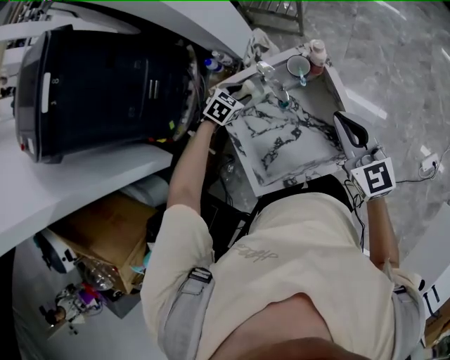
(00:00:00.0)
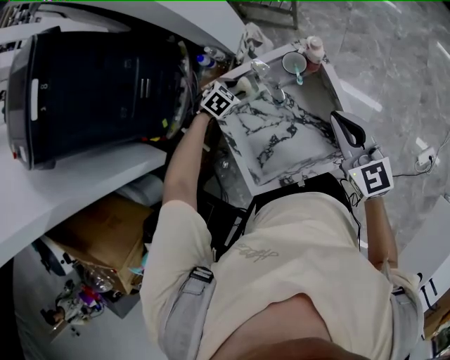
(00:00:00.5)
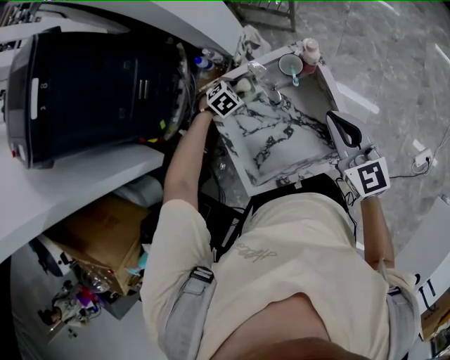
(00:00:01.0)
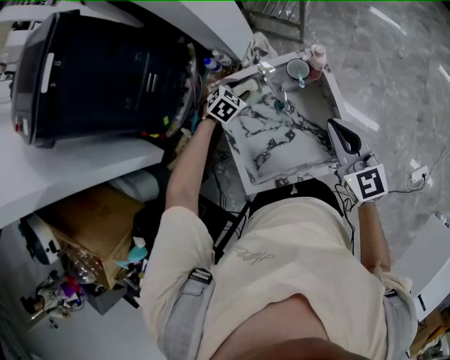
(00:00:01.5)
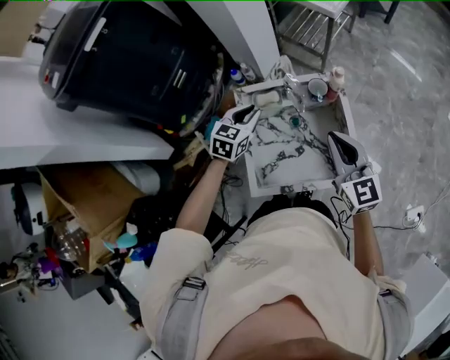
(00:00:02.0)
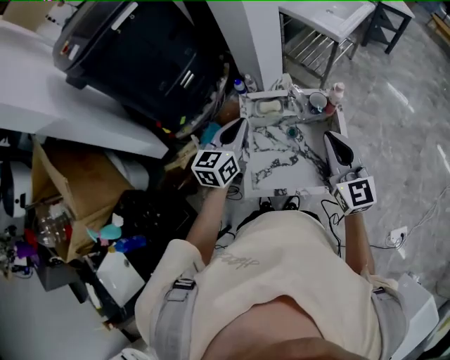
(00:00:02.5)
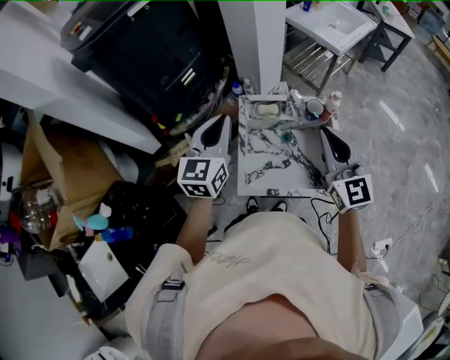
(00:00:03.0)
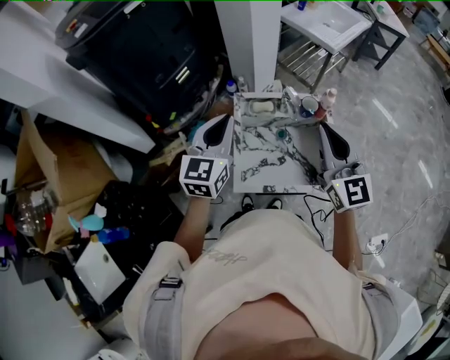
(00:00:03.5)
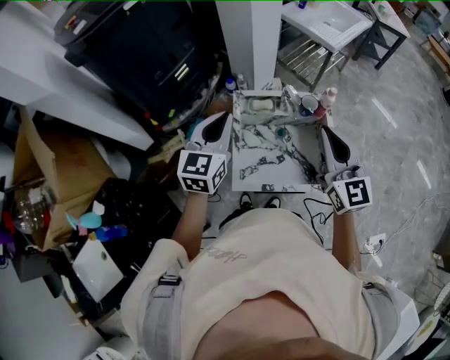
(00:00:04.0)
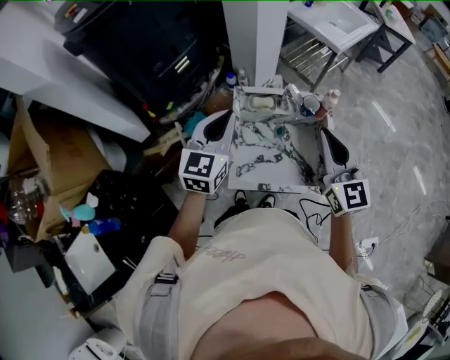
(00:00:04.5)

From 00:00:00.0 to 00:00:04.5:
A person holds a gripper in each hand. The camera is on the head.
From 00:00:00.0 to 00:00:02.0: The left gripper shifts roughly 15 cm upward and backward, rotates some 40 degrees, and closes its fingers; the right gripper moves about 5 cm.
From 00:00:02.0 to 00:00:04.5: The right gripper shifts approximately 10 cm upward, while the left gripper travels upward, backward and to the left by some 20 cm, and swivels roughly 30 degrees.

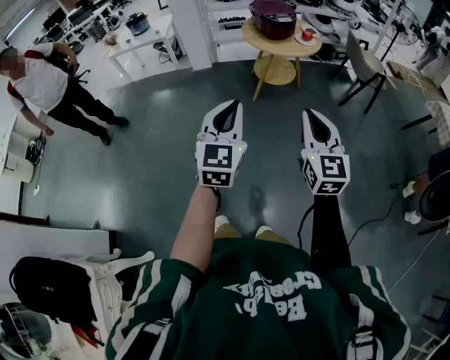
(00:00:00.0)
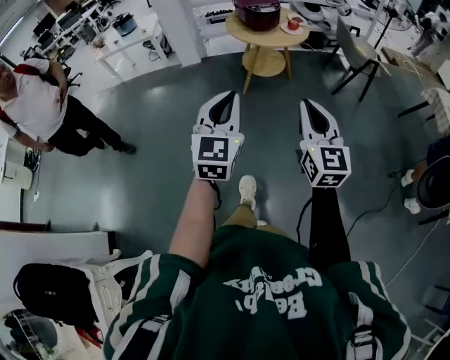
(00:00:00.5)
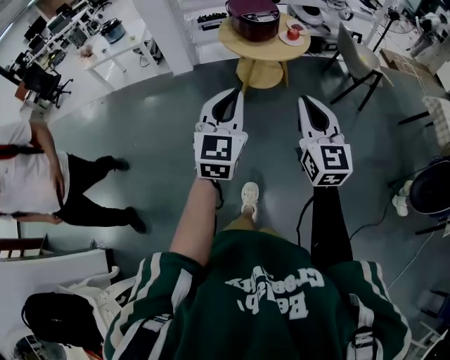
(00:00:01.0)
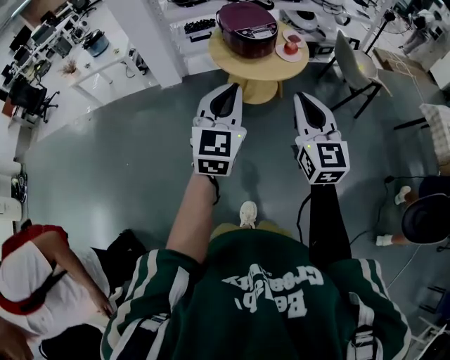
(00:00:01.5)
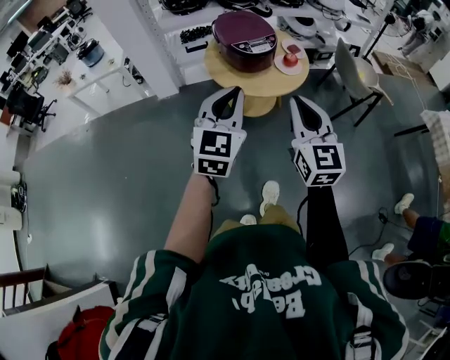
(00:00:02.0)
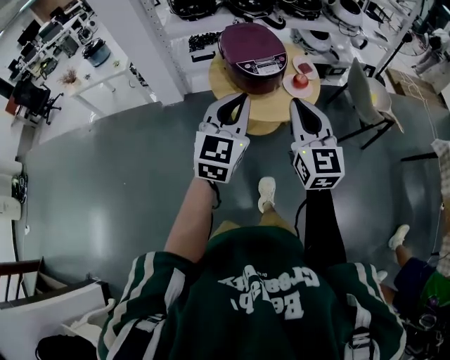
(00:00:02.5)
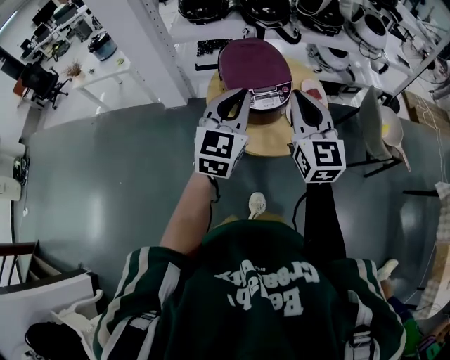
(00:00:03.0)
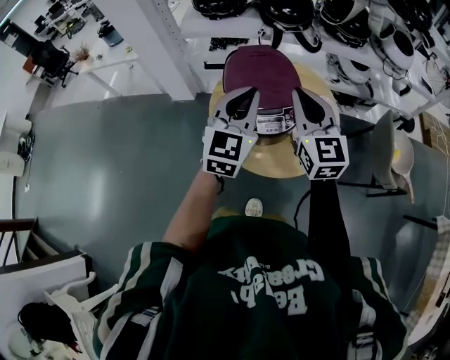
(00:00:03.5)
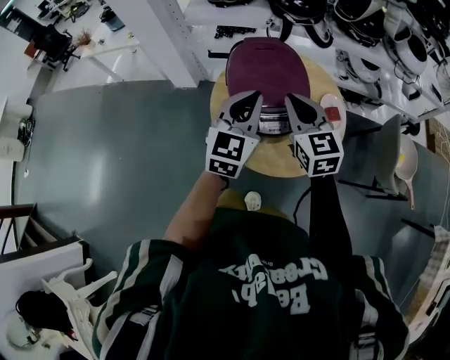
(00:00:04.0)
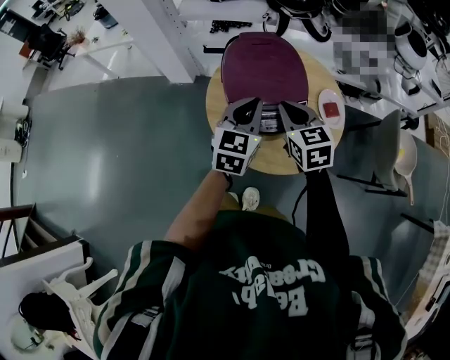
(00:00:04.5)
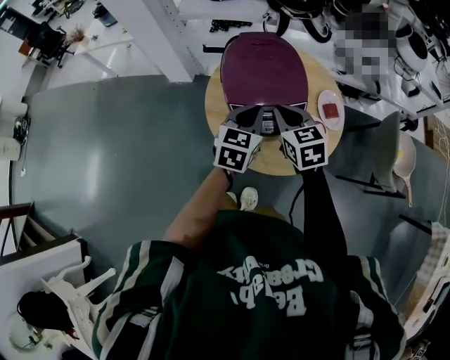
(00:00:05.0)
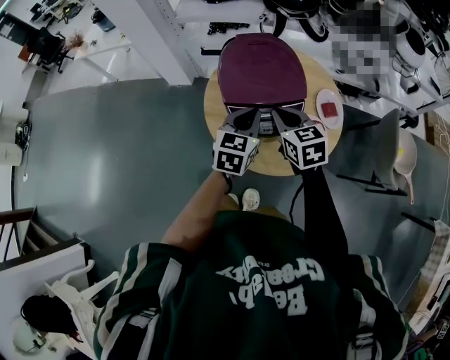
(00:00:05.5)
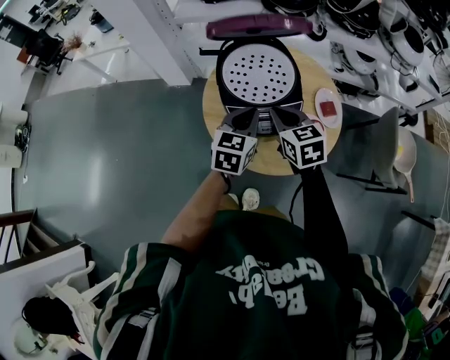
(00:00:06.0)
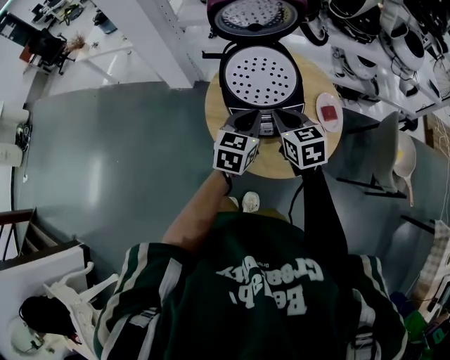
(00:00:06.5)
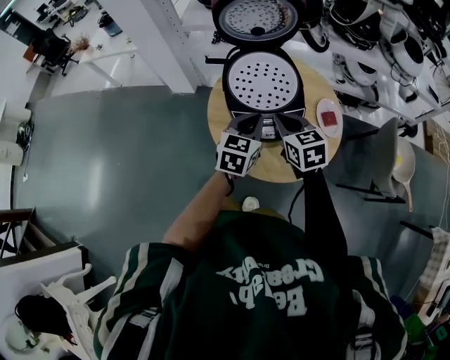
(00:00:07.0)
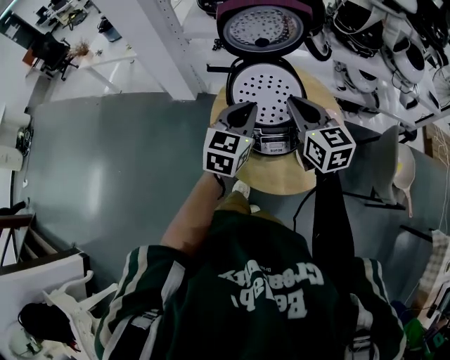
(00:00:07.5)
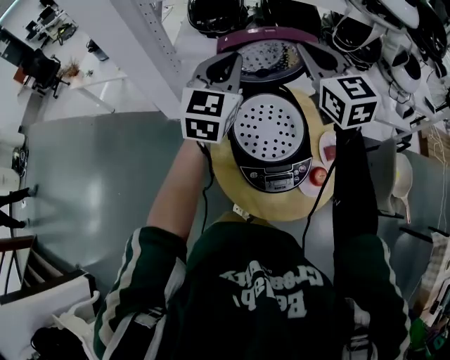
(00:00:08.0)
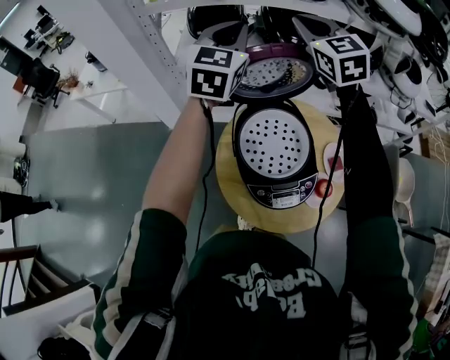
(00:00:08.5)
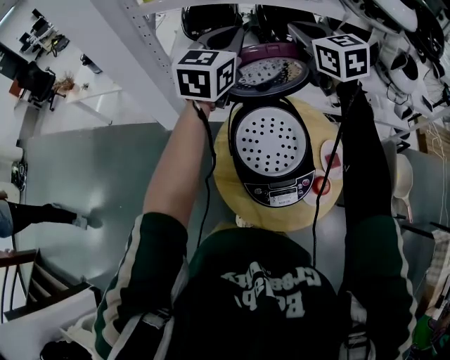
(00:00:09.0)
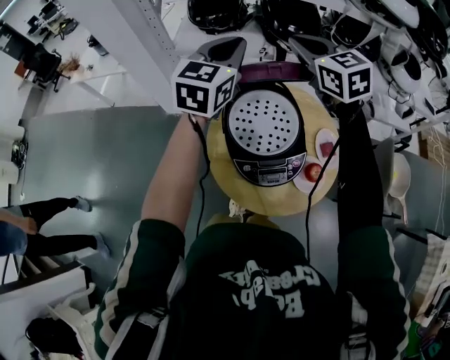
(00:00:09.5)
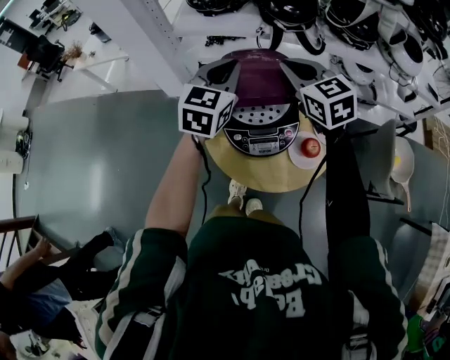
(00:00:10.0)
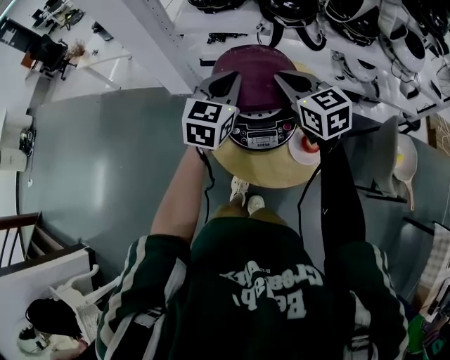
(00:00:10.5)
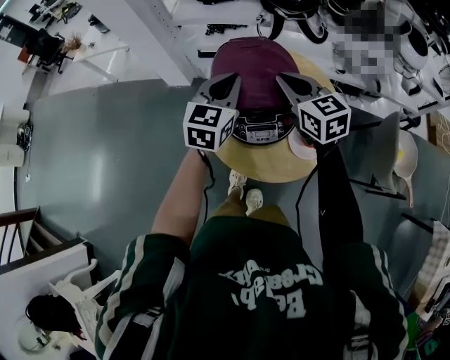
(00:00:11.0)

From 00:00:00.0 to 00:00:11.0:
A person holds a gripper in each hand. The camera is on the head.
From 00:00:00.0 to 00:00:02.0: The two grippers travel together, forward, some 50 cm.
From 00:00:02.0 to 00:00:03.5: The pair of grippers is taken forward, some 40 cm.
From 00:00:03.5 to 00:00:05.5: The two grippers go some 15 cm downward. The right gripper changes its angle by about 30 degrees. Meanwhile the left gripper changes its angle by some 30 degrees.
From 00:00:05.5 to 00:00:07.5: The grippers both shift upward and forward by approximately 10 cm.
From 00:00:07.5 to 00:00:09.0: The two grippers go roughly 35 cm forward and upward.
From 00:00:09.0 to 00:00:11.0: Both grippers travel together backward and downward, roughly 30 cm.

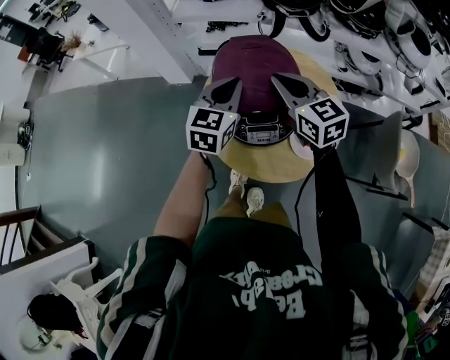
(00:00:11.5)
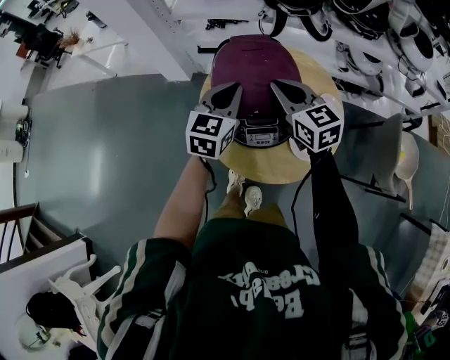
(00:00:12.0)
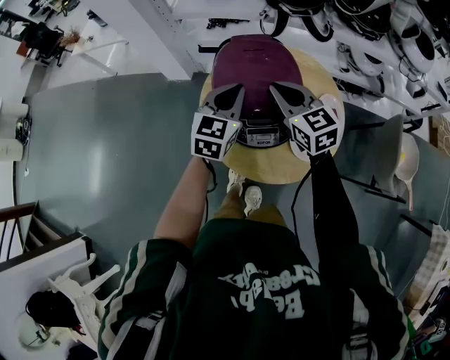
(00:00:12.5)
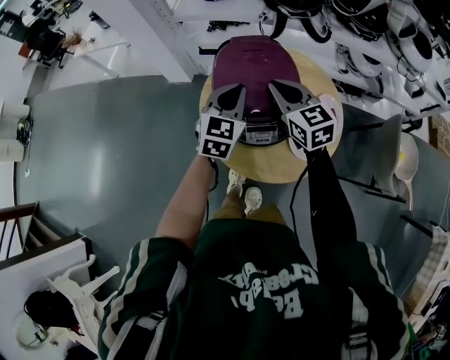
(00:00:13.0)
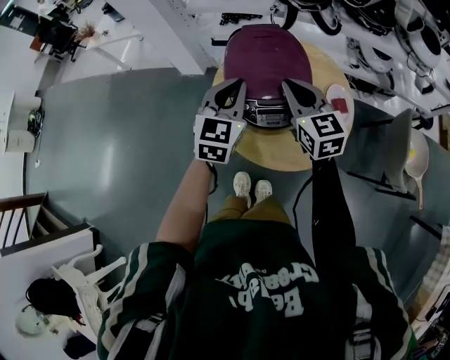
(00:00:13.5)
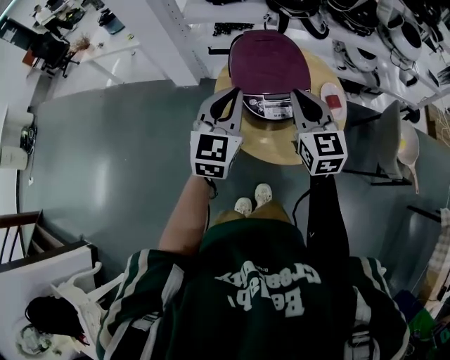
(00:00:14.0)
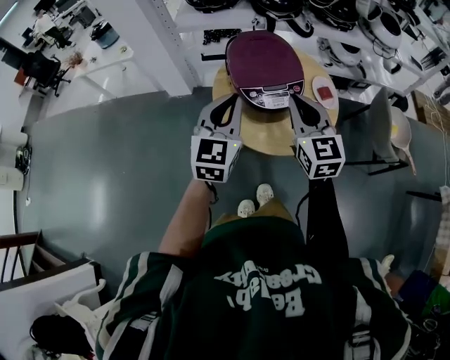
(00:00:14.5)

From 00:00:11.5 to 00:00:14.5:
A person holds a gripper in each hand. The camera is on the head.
From 00:00:11.5 to 00:00:13.0: The grippers make only small movements.
From 00:00:13.0 to 00:00:14.5: The left gripper shifts about 25 cm backward, upward and to the left. The right gripper moves backward and upward, about 20 cm, and changes its angle by some 20 degrees.

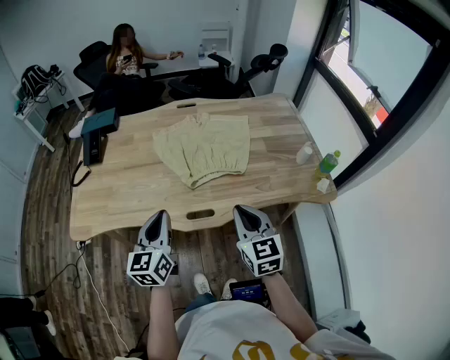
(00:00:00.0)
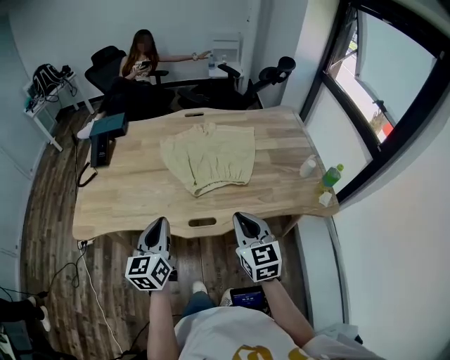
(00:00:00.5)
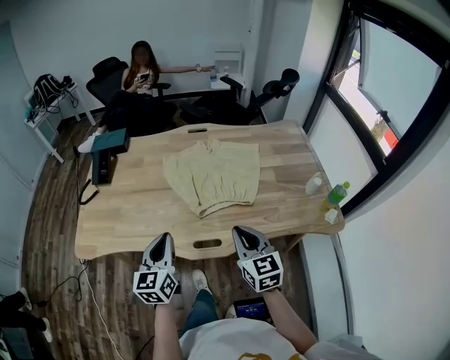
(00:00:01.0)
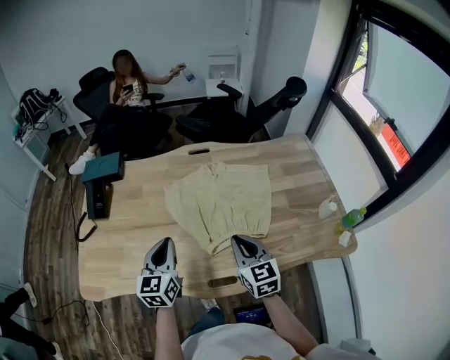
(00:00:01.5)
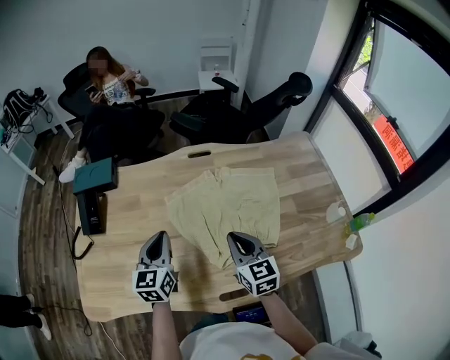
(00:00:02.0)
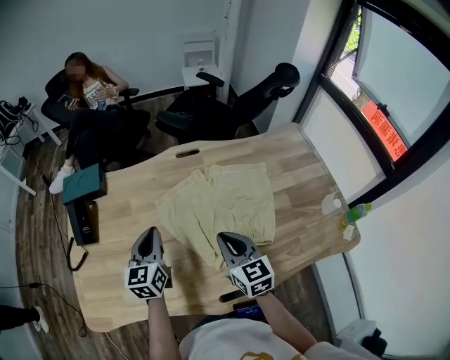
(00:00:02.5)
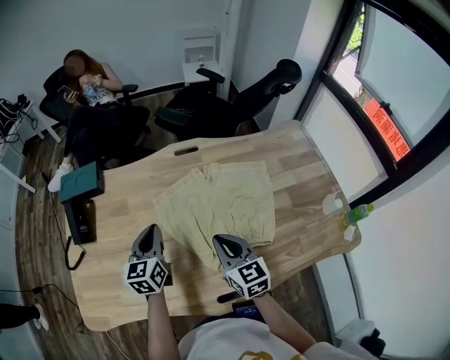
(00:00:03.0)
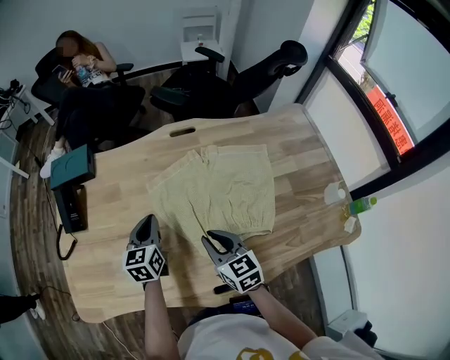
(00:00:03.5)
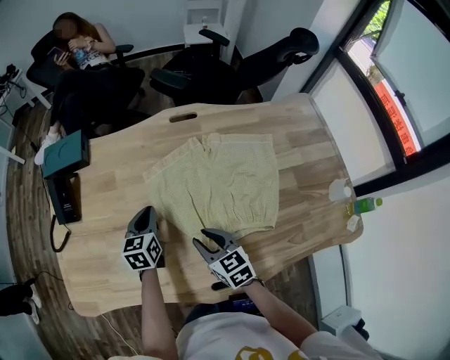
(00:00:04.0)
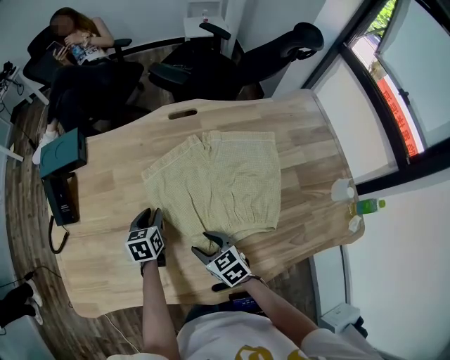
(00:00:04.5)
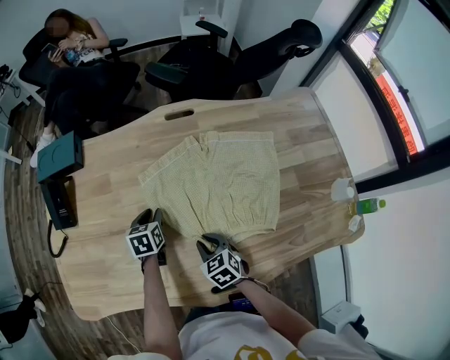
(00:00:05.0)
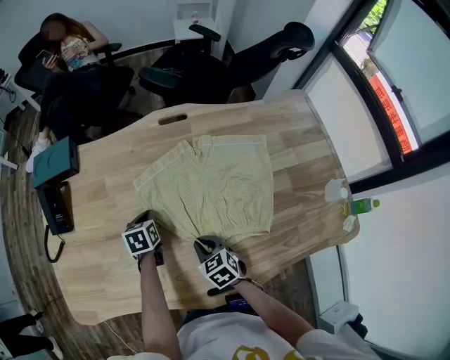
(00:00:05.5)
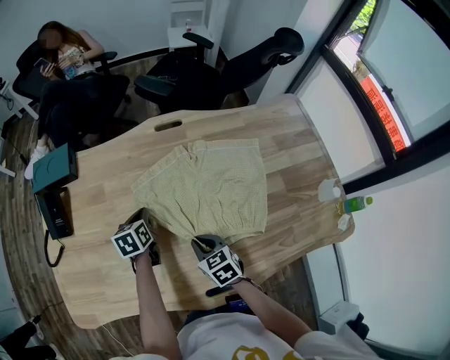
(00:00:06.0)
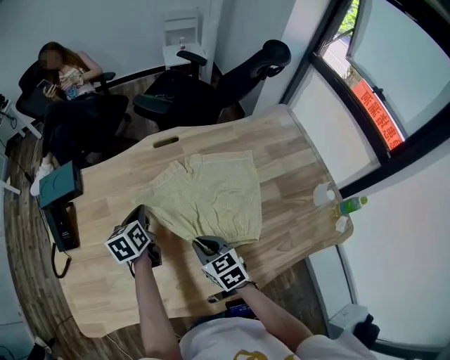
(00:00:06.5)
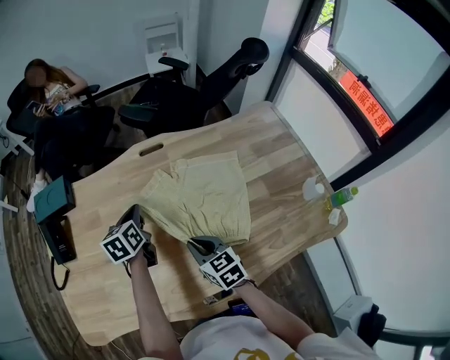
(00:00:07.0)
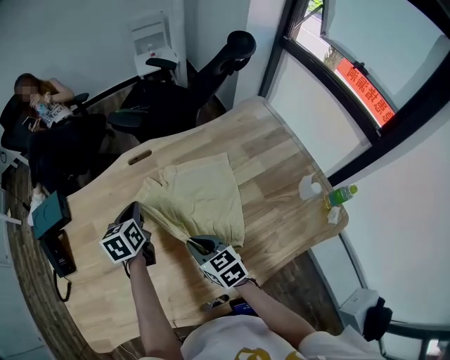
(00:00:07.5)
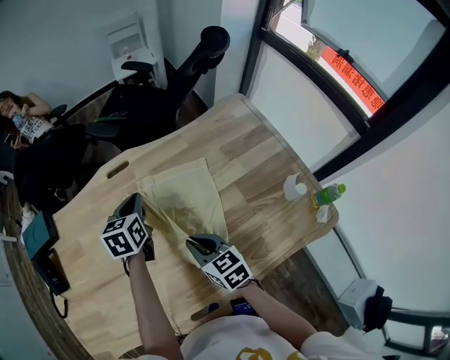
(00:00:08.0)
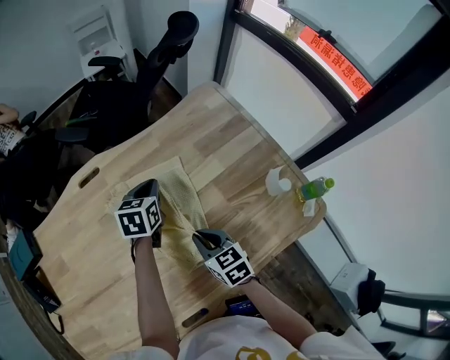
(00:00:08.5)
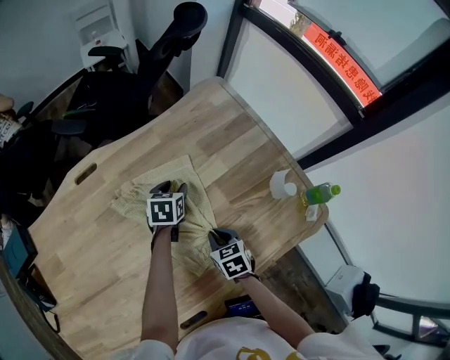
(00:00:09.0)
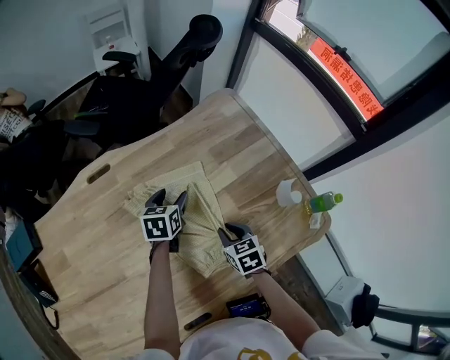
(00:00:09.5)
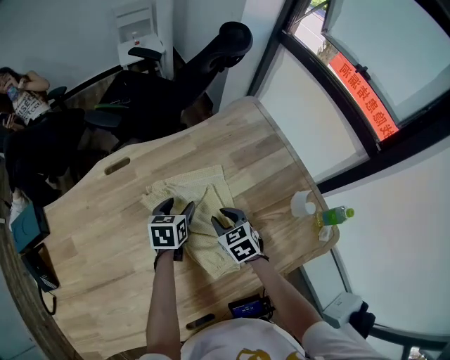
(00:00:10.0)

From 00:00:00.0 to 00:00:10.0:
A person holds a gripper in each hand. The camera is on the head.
From 00:00:00.0 to 00:00:02.0: The two grippers go about 25 cm forward.
From 00:00:02.0 to 00:00:04.0: The right gripper shifts roughly 15 cm downward and to the left, turns by about 20 degrees, and opens its fingers; the left gripper is displaced downward and forward by some 15 cm.
From 00:00:04.0 to 00:00:06.0: The left gripper opens, then closes once more. The right gripper opens, then closes once more.
From 00:00:06.0 to 00:00:08.0: The left gripper heads to the right and upward, covering approximately 25 cm, and swivels about 20 degrees; the right gripper heads to the right and upward, covering some 15 cm, and changes its angle by some 20 degrees.
From 00:00:08.0 to 00:00:10.0: The right gripper moves forward, to the right and downward, approximately 15 cm, turns by some 20 degrees, and opens up; the left gripper moves downward and to the right, approximately 15 cm, and opens.
